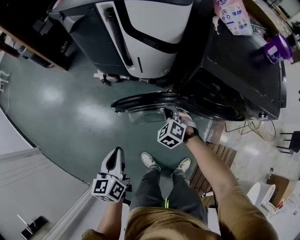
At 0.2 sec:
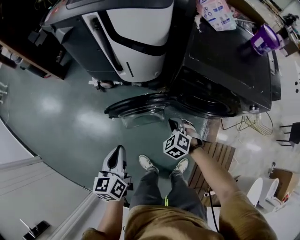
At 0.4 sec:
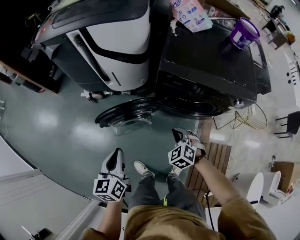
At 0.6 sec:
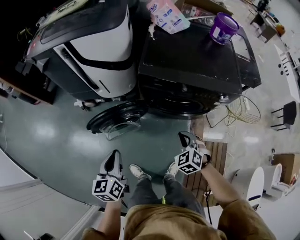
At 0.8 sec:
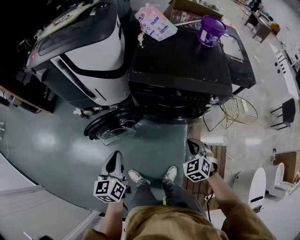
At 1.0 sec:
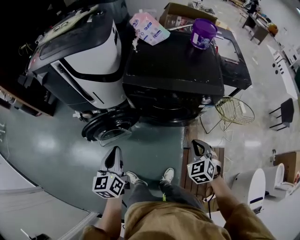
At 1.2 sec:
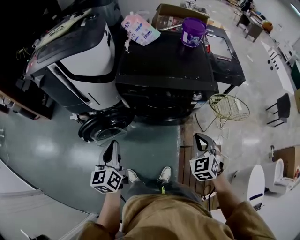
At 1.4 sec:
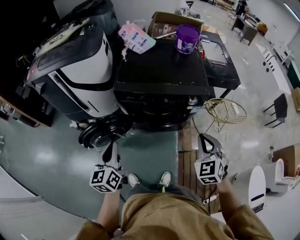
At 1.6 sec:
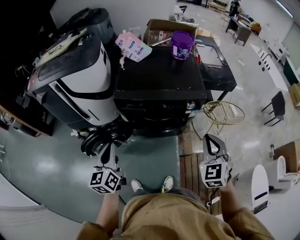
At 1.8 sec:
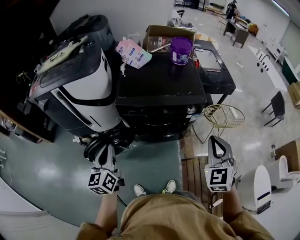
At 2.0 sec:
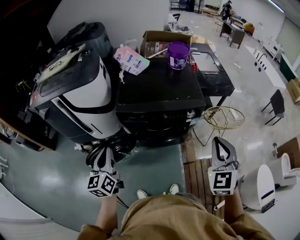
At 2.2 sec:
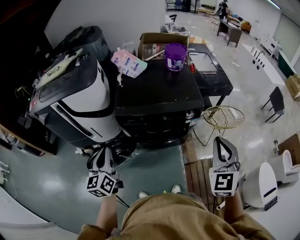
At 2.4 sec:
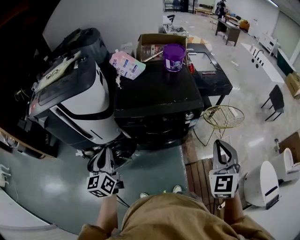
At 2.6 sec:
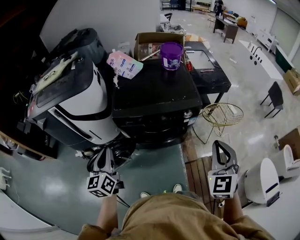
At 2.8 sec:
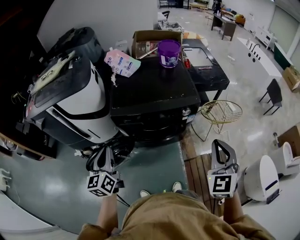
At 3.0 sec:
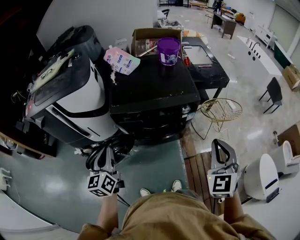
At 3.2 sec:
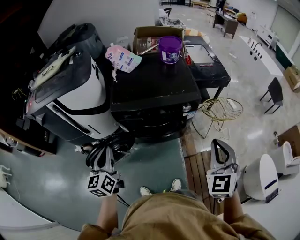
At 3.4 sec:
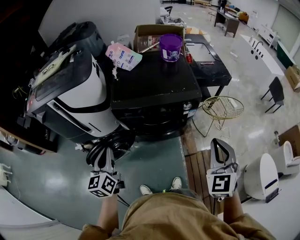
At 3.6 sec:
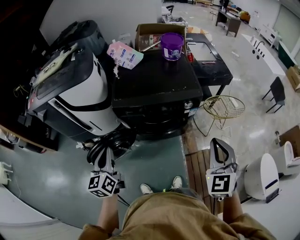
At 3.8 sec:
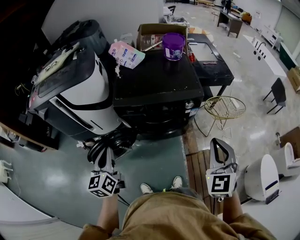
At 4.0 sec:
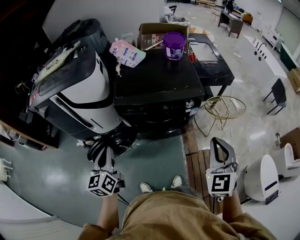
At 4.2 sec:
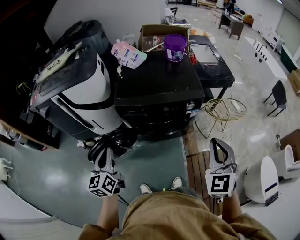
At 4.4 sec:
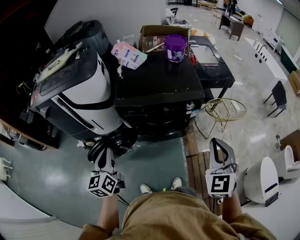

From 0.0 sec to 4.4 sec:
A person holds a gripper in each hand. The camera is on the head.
From 0.0 sec to 1.4 sec: The left gripper moves to the right and upward, some 30 cm, and swivels roughly 20 degrees. The right gripper shifts about 60 cm to the right and upward, and changes its angle by some 40 degrees.
From 1.4 sec to 3.0 sec: The right gripper is displaced upward by approximately 15 cm. The left gripper travels upward and forward by roughly 10 cm.
From 3.0 sec to 4.4 sec: The grippers move only a little.

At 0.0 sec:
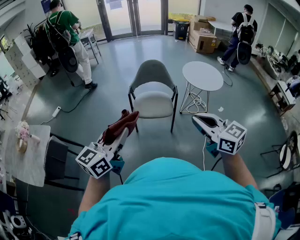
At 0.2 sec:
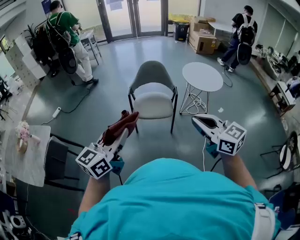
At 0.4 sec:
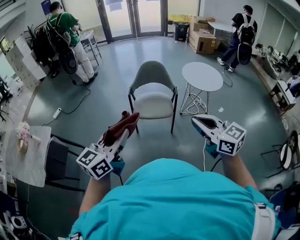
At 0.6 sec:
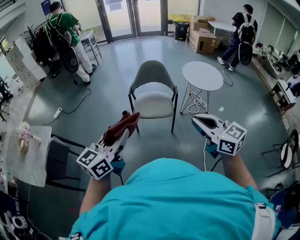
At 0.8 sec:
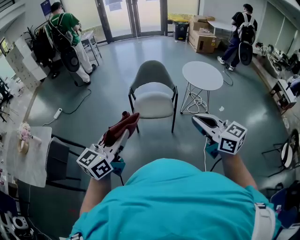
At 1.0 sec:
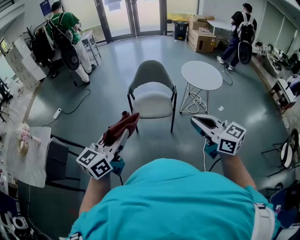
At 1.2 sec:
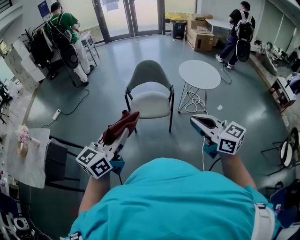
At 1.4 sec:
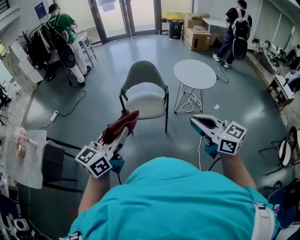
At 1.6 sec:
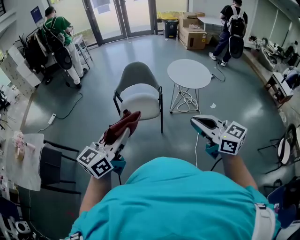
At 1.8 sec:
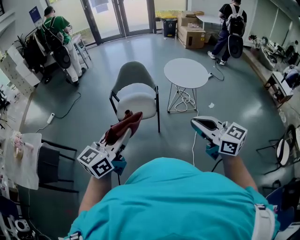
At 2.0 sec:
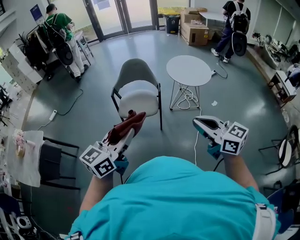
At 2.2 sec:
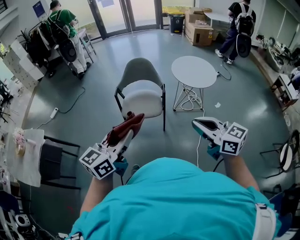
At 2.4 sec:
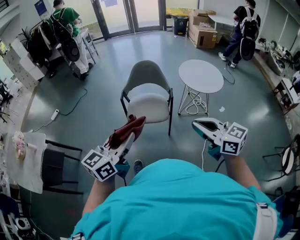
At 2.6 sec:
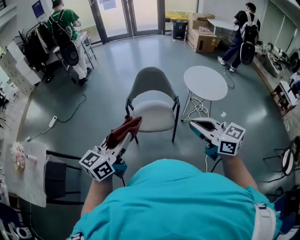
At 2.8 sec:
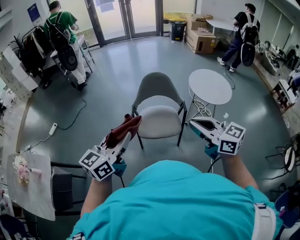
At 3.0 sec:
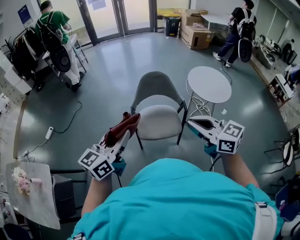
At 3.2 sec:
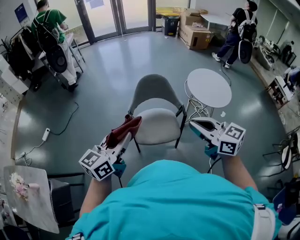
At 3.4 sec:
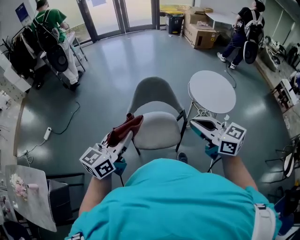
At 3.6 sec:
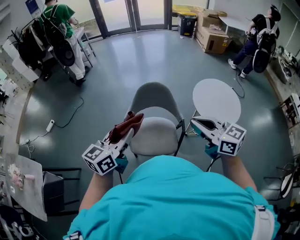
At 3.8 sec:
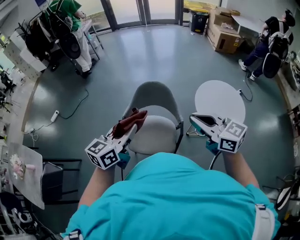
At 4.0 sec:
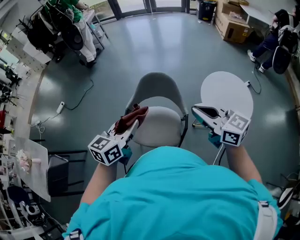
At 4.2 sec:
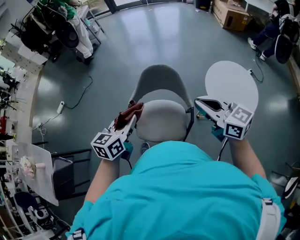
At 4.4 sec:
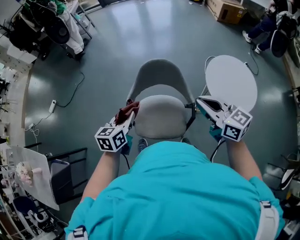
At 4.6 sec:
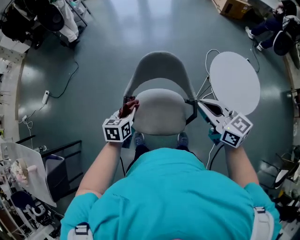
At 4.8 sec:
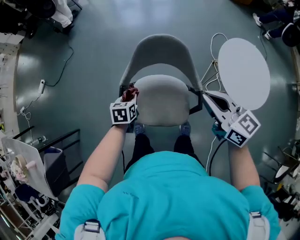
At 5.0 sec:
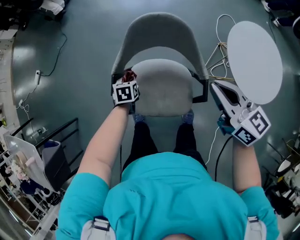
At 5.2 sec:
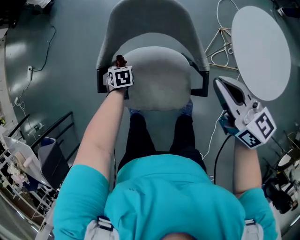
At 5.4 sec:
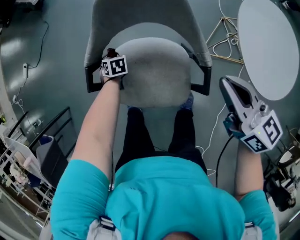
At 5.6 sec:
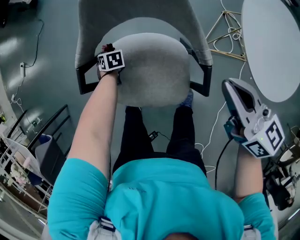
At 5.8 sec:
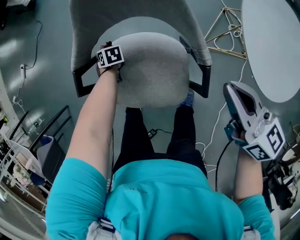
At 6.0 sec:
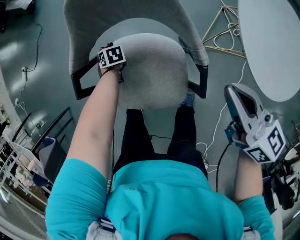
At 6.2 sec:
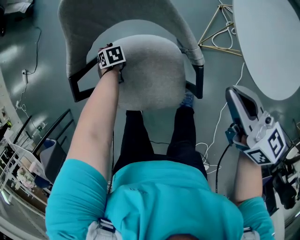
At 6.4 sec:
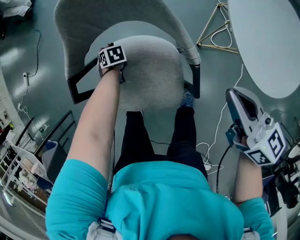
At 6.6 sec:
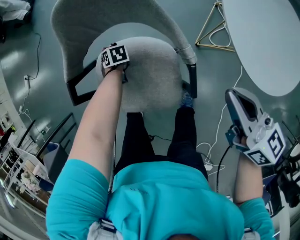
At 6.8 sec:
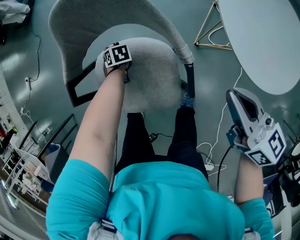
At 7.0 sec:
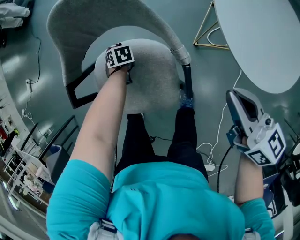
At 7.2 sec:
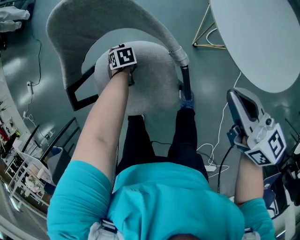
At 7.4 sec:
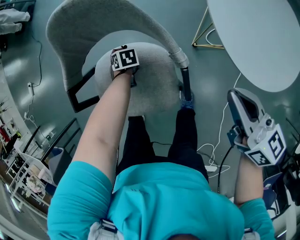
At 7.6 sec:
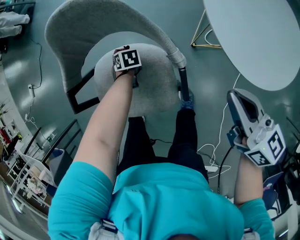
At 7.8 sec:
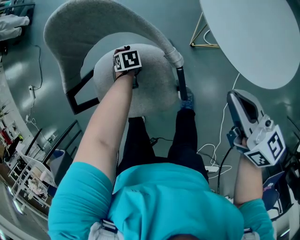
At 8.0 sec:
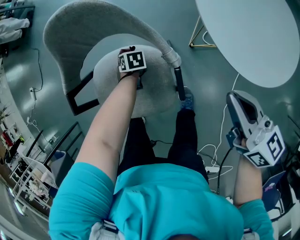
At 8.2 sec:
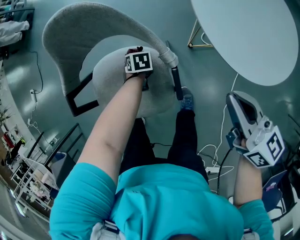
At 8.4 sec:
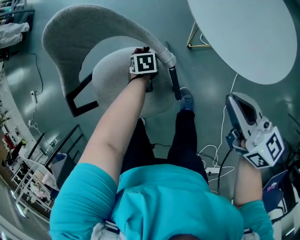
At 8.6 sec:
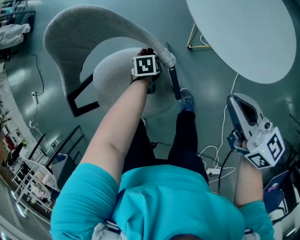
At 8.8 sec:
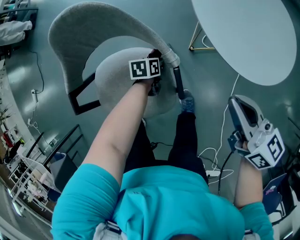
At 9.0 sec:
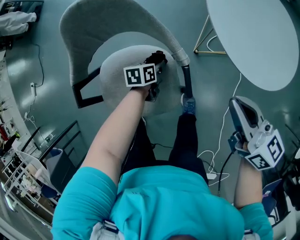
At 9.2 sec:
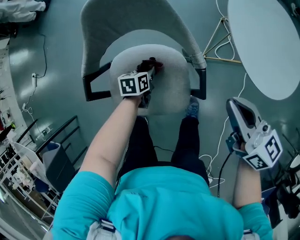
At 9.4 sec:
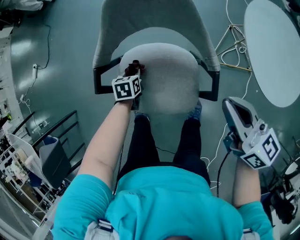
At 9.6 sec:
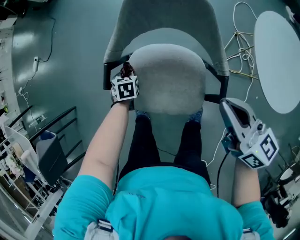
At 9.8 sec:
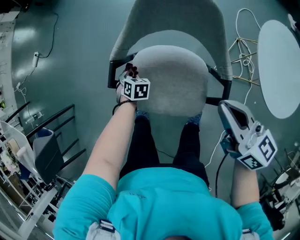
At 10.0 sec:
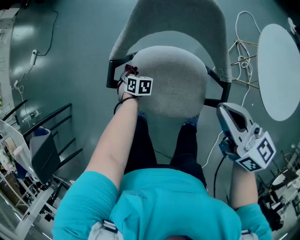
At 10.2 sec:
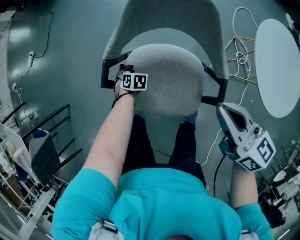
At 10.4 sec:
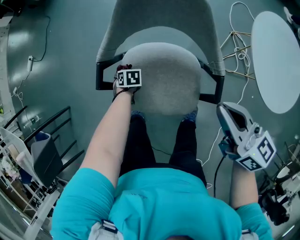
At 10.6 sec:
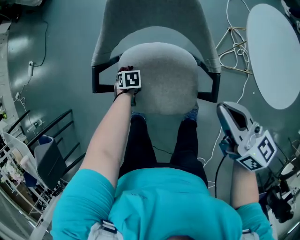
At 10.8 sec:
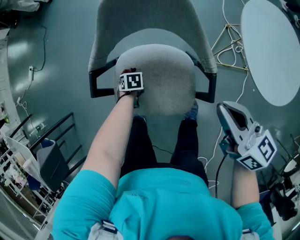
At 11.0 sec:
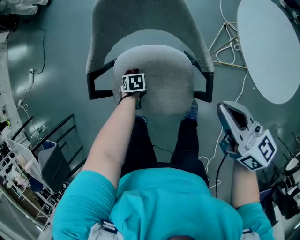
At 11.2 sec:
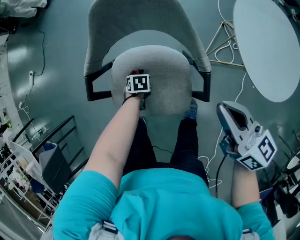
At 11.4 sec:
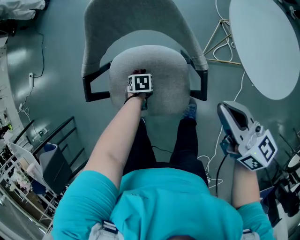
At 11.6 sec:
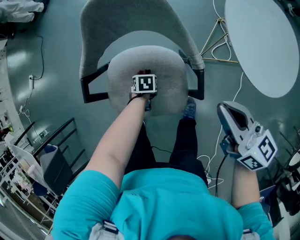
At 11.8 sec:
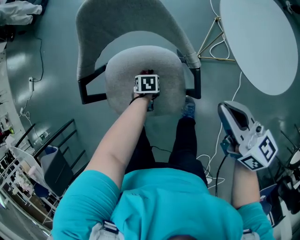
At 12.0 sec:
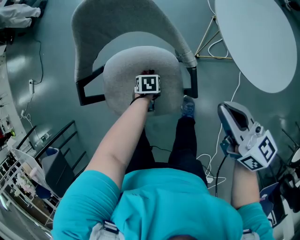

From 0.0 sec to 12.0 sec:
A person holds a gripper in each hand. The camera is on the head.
From 0.0 sec to 1.6 sec: The grippers both shift to the right by roughly 15 cm.
From 1.6 sec to 3.0 sec: Both grippers move forward and to the left, approximately 40 cm.
From 3.0 sec to 4.4 sec: The left gripper travels forward, downward and to the right by roughly 40 cm, and tips its fingers downward by approximately 30 degrees; the right gripper shifts some 35 cm forward and to the right.
From 4.4 sec to 6.0 sec: The left gripper travels downward by some 50 cm, and tilts its fingers approximately 40 degrees downward. Meanwhile the right gripper shifts about 30 cm downward.
From 6.0 sec to 7.6 sec: The left gripper moves roughly 15 cm. Meanwhile the right gripper moves about 10 cm.
From 7.6 sec to 9.0 sec: The left gripper moves roughly 15 cm, and changes its angle by some 50 degrees.
From 9.0 sec to 10.4 sec: The right gripper changes place by roughly 15 cm. Meanwhile the left gripper shifts by approximately 30 cm, and changes its angle by roughly 50 degrees.
From 10.4 sec to 12.0 sec: The right gripper shifts by approximately 10 cm, while the left gripper ends up about 25 cm from where it was.

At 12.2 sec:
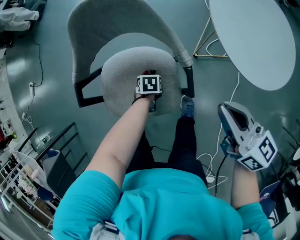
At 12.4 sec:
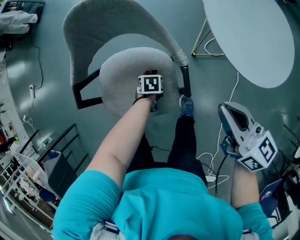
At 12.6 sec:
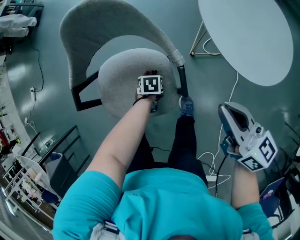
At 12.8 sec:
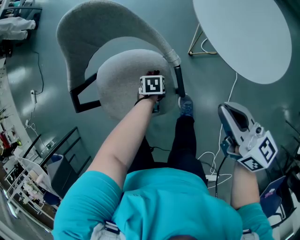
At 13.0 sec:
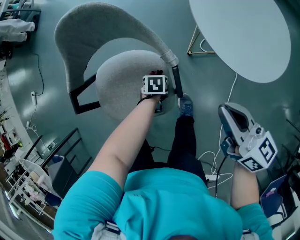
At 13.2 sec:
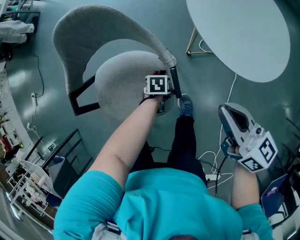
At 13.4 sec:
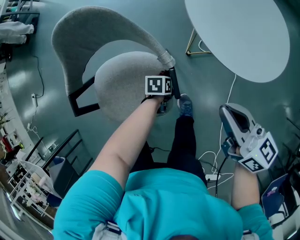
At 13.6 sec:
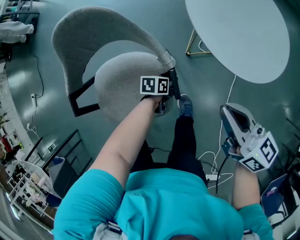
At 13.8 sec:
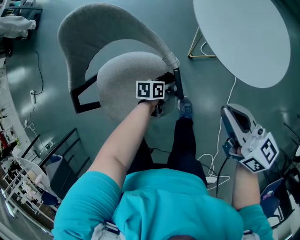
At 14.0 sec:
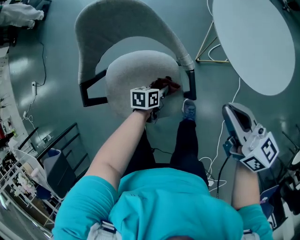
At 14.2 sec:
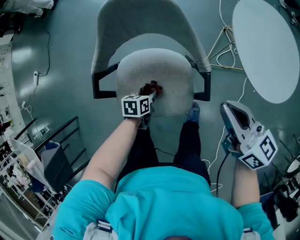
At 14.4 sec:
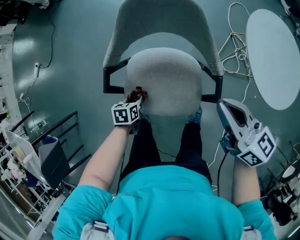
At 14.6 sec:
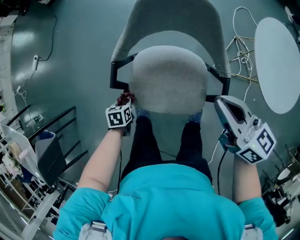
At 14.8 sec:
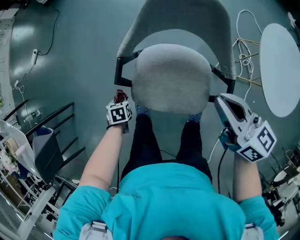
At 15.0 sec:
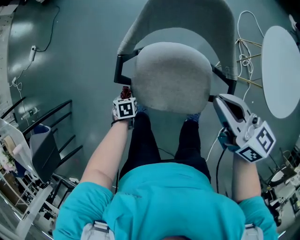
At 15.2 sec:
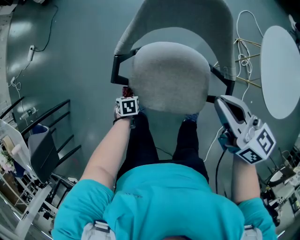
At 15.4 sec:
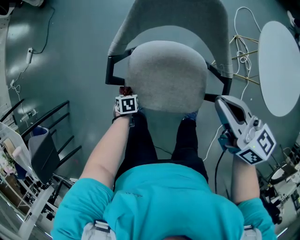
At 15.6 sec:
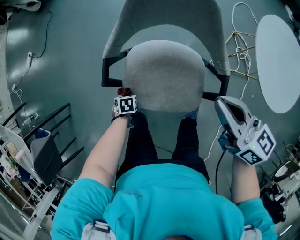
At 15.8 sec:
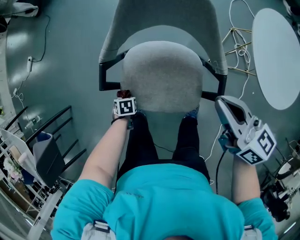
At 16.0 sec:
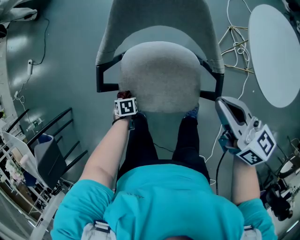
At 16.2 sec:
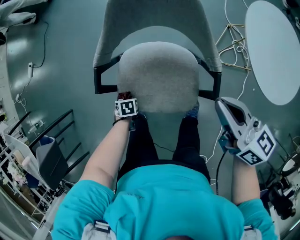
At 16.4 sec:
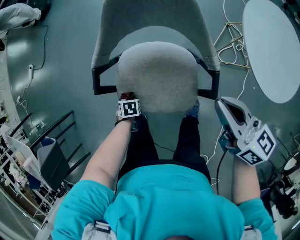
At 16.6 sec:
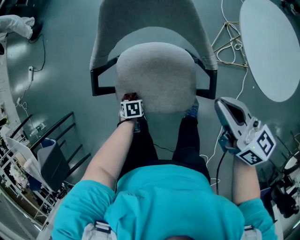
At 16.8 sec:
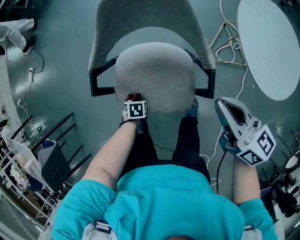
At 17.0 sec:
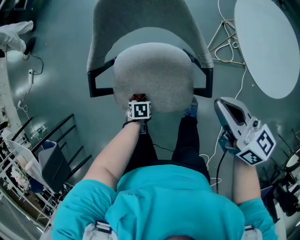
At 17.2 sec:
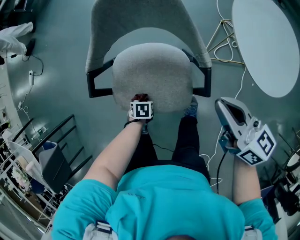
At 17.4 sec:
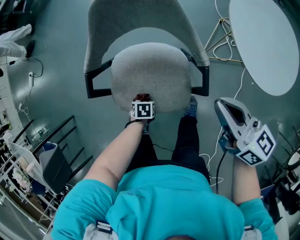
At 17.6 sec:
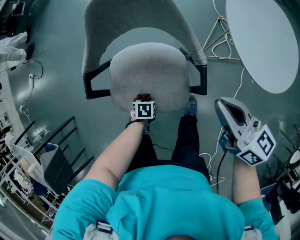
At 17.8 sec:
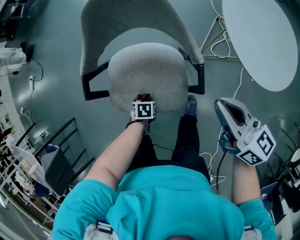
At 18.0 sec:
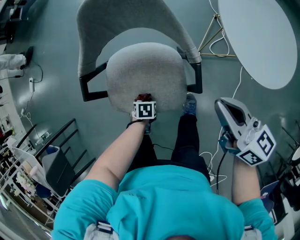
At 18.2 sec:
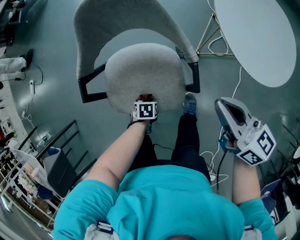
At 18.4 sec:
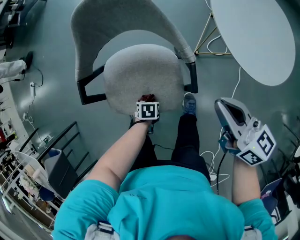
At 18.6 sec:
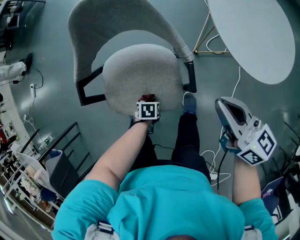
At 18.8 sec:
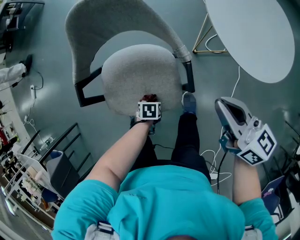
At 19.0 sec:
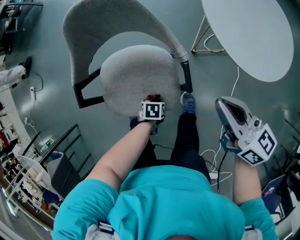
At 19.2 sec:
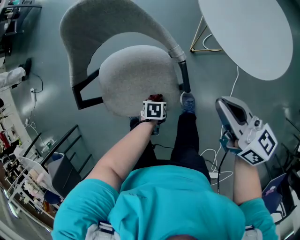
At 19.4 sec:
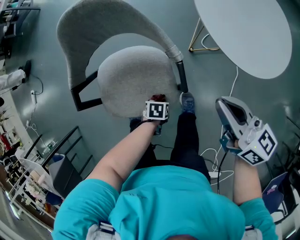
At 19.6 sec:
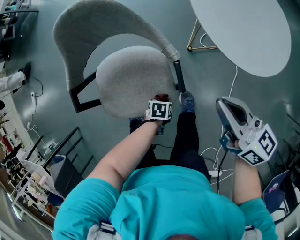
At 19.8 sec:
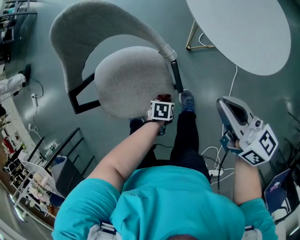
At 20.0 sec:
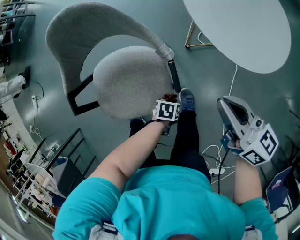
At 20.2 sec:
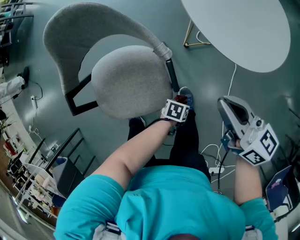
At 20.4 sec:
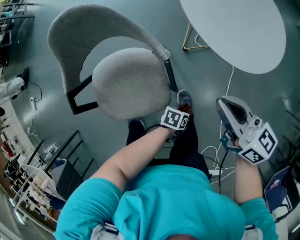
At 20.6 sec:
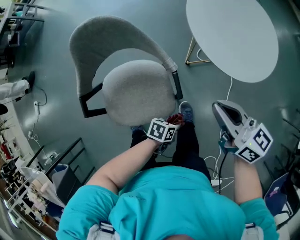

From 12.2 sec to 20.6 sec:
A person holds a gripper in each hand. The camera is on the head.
From 12.2 sec to 13.6 sec: The right gripper shifts by roughly 5 cm. The left gripper changes place by about 15 cm, and turns by approximately 30 degrees.
From 13.6 sec to 15.0 sec: The right gripper moves about 30 cm, and swivels some 20 degrees, while the left gripper shifts by about 50 cm, and rotates roughly 50 degrees.
From 15.0 sec to 16.4 sec: The left gripper shifts by about 10 cm, while the right gripper shifts by some 10 cm.
From 16.4 sec to 17.8 sec: The right gripper ends up about 5 cm from where it was. The left gripper shifts by some 15 cm.
From 17.8 sec to 19.2 sec: The right gripper ends up some 5 cm from where it was, while the left gripper moves some 10 cm.
From 19.2 sec to 20.6 sec: The left gripper moves roughly 15 cm, and rotates roughly 30 degrees.
